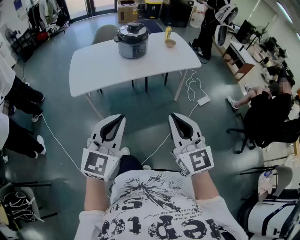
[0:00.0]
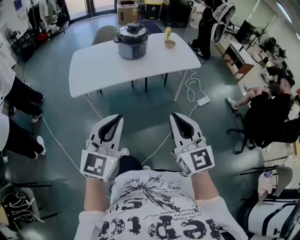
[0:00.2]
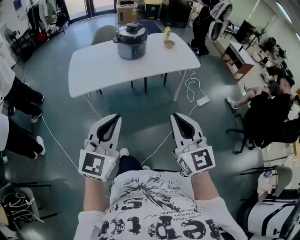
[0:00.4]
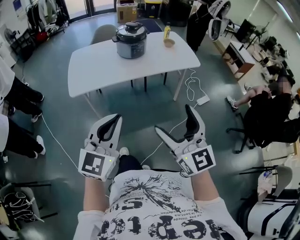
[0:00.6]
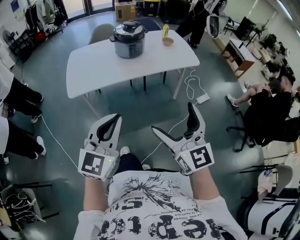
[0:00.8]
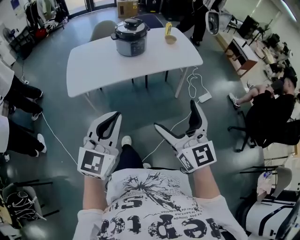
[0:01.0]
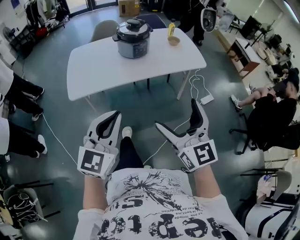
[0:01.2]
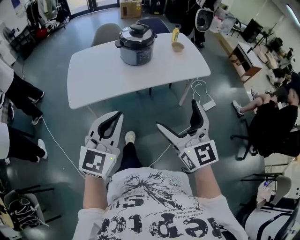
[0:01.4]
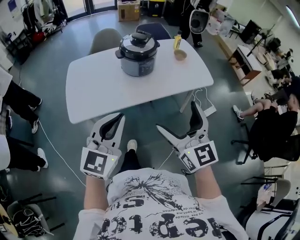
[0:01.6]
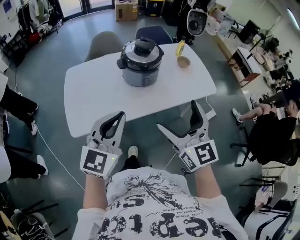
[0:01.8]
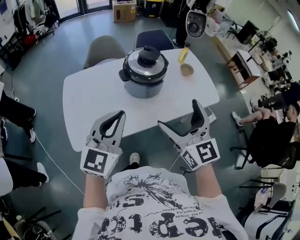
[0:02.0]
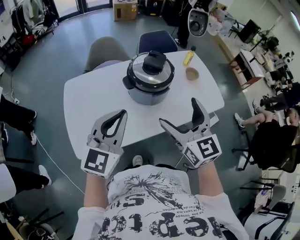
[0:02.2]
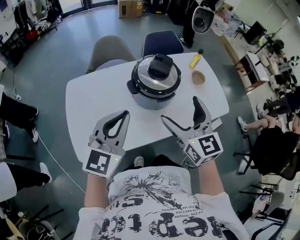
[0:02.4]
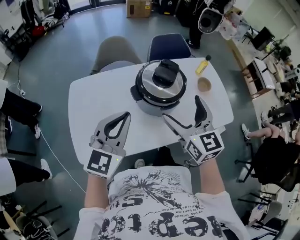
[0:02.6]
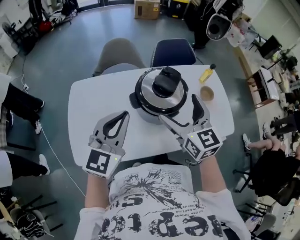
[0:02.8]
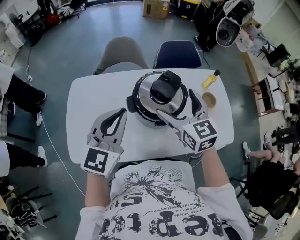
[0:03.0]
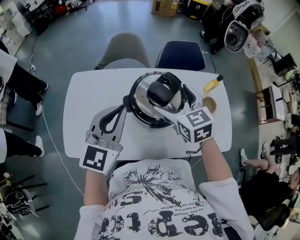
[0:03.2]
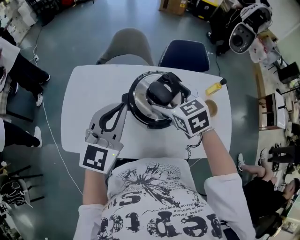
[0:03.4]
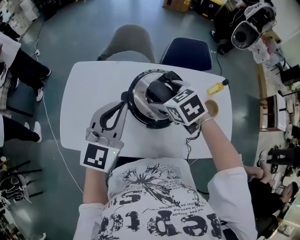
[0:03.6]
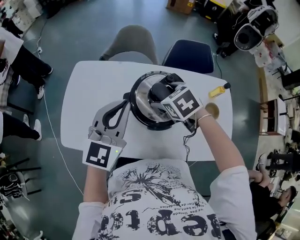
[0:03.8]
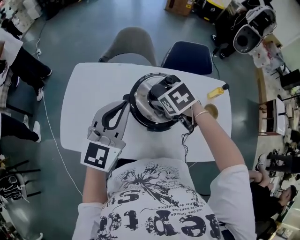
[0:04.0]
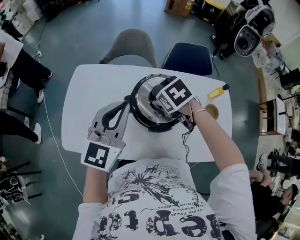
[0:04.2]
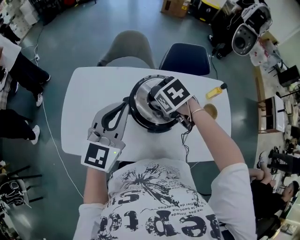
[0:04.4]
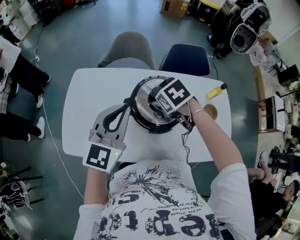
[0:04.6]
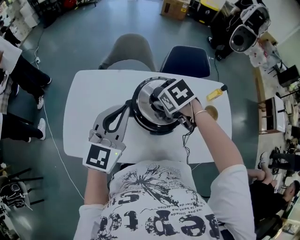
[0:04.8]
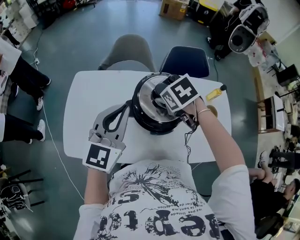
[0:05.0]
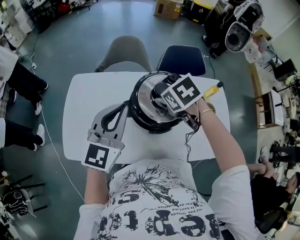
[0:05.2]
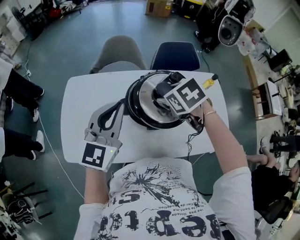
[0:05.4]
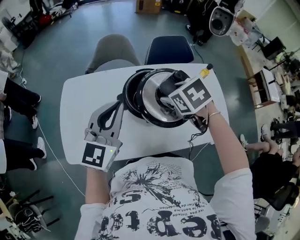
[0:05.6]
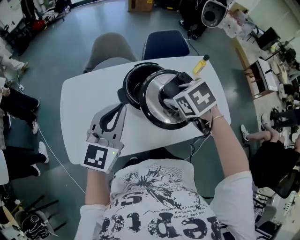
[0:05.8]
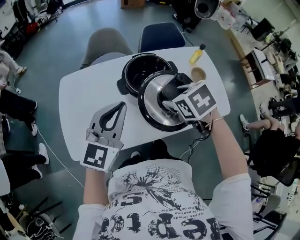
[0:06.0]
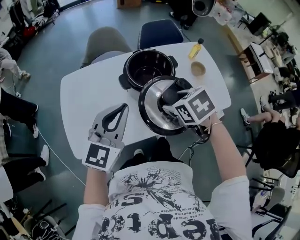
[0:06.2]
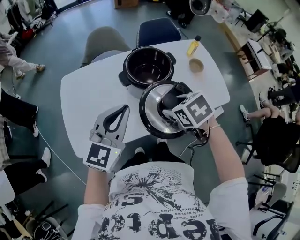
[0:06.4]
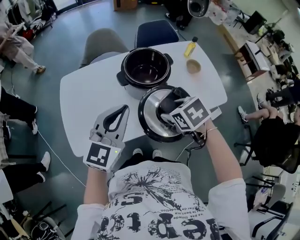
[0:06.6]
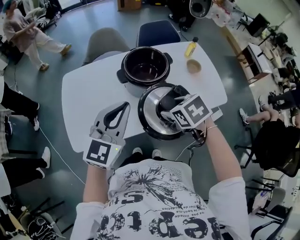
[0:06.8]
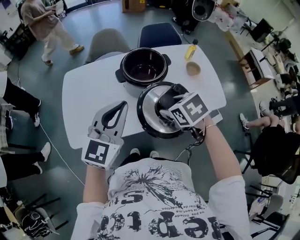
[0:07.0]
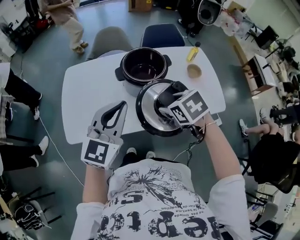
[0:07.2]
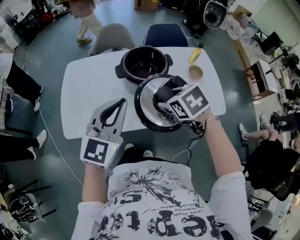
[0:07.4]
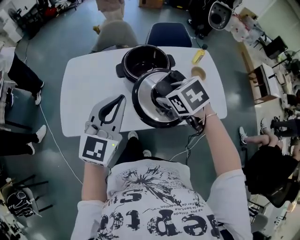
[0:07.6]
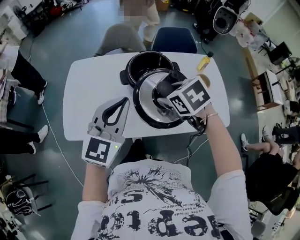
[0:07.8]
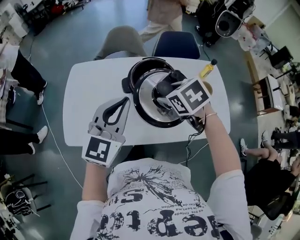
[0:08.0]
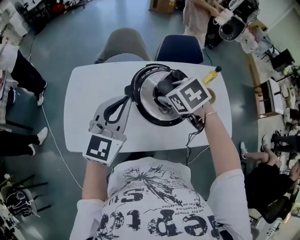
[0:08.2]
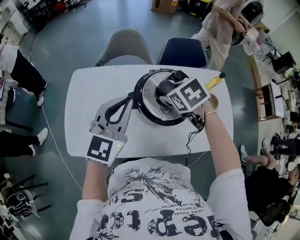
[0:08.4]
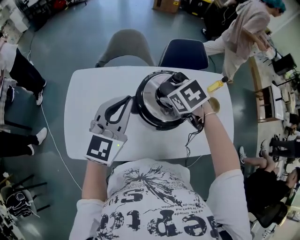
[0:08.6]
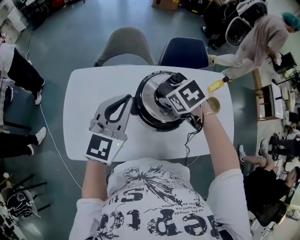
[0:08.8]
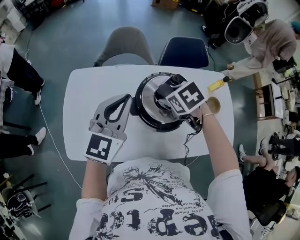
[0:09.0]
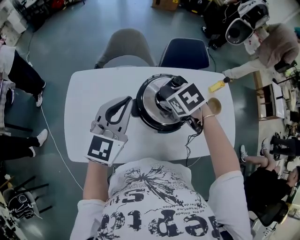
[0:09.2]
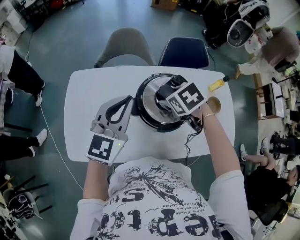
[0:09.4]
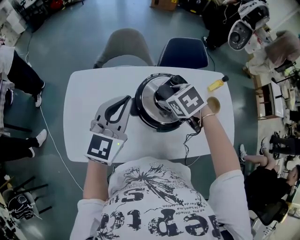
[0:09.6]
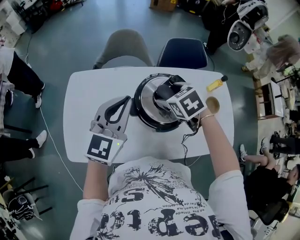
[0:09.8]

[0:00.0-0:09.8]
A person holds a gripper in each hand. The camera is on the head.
0:00.0 to 0:01.4: The two grippers go about 20 cm forward. The right gripper opens up.
0:01.4 to 0:02.8: The pair of grippers is taken forward, some 60 cm.
0:02.8 to 0:04.2: The left gripper shifts by about 10 cm. The right gripper ends up about 20 cm from where it was, tips its fingers downward by some 60 degrees, and closes up.
0:04.2 to 0:05.6: The right gripper moves backward and upward, approximately 10 cm.
0:05.6 to 0:07.0: The two grippers go some 20 cm backward.
0:07.0 to 0:08.4: The two grippers go about 25 cm forward.
0:08.4 to 0:09.8: The right gripper ends up some 5 cm from where it was, while the left gripper goes some 5 cm forward.

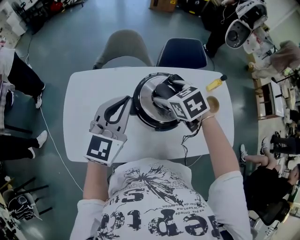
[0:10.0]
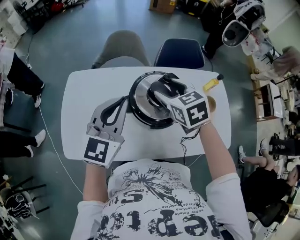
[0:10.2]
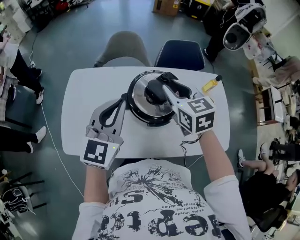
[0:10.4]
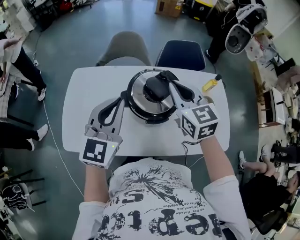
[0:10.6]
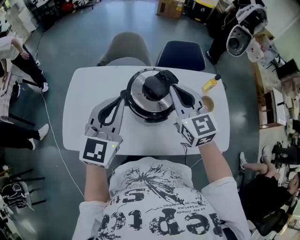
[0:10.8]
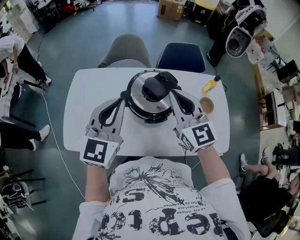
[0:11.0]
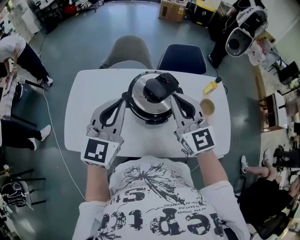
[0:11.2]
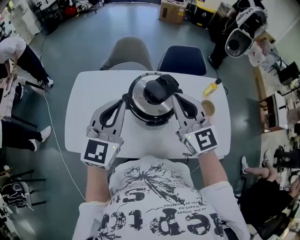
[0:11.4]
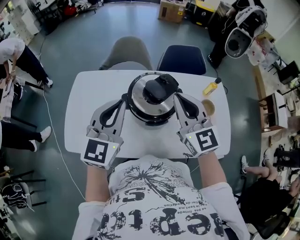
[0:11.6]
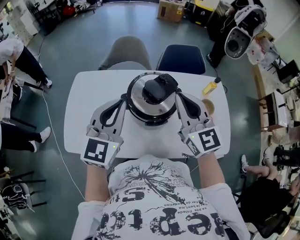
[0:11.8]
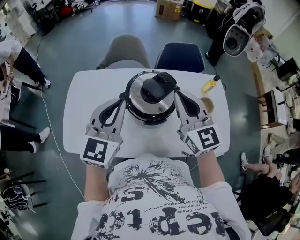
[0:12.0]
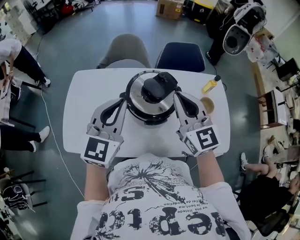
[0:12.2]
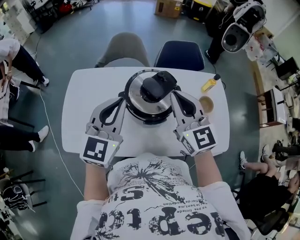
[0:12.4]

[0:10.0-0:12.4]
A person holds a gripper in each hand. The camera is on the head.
0:10.0 to 0:11.2: The right gripper goes approximately 20 cm upward, backward and to the right, tilts its fingers roughly 50 degrees upward, and closes. The left gripper shifts approximately 10 cm backward.
0:11.2 to 0:12.4: There are only small adjustments of the grippers.

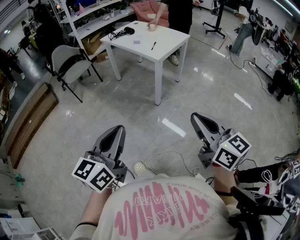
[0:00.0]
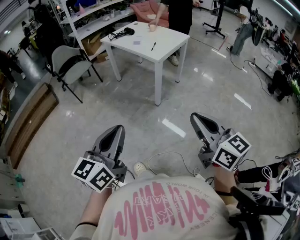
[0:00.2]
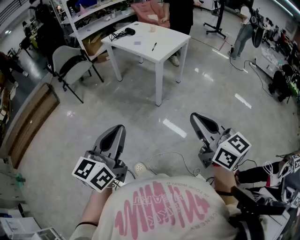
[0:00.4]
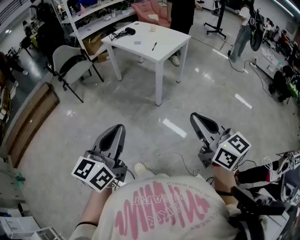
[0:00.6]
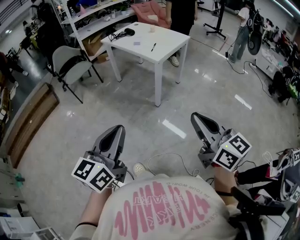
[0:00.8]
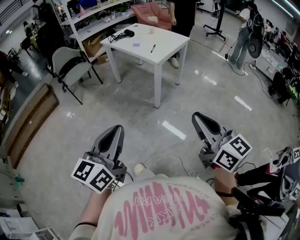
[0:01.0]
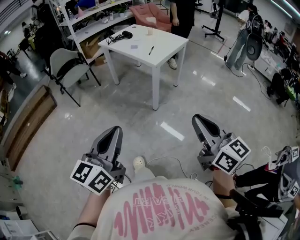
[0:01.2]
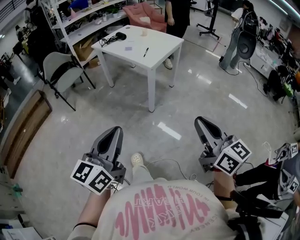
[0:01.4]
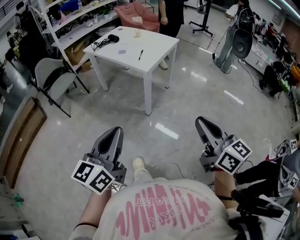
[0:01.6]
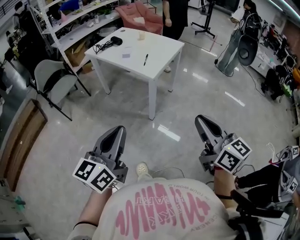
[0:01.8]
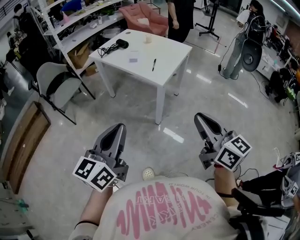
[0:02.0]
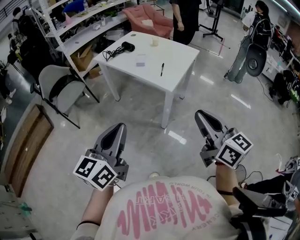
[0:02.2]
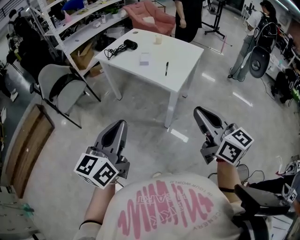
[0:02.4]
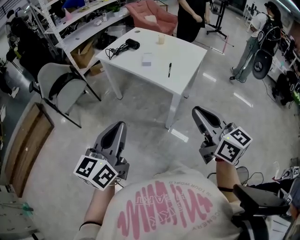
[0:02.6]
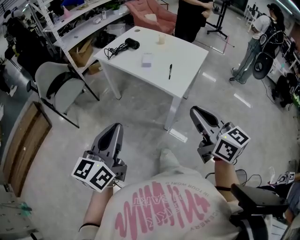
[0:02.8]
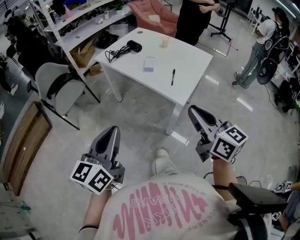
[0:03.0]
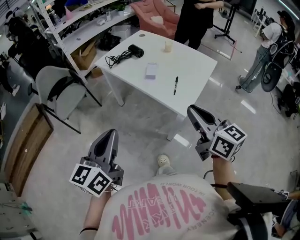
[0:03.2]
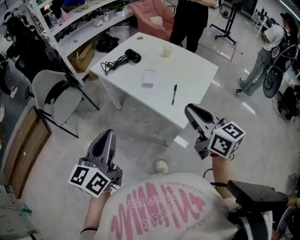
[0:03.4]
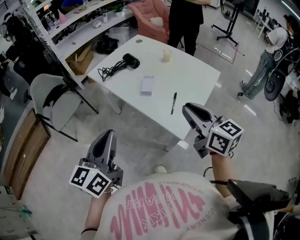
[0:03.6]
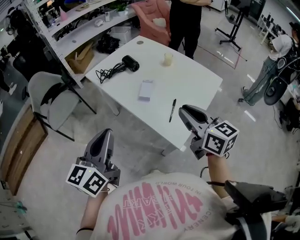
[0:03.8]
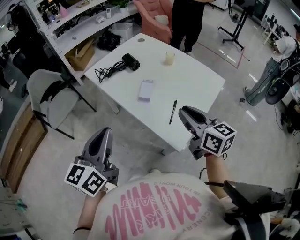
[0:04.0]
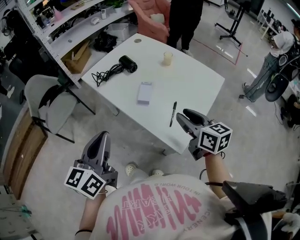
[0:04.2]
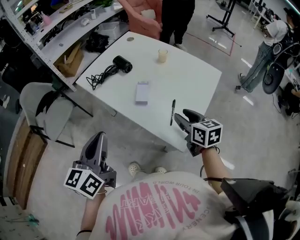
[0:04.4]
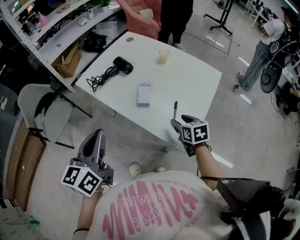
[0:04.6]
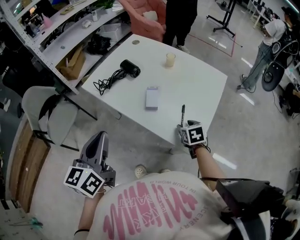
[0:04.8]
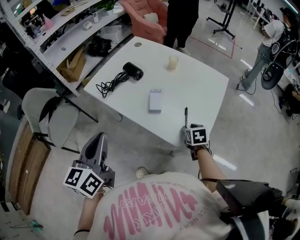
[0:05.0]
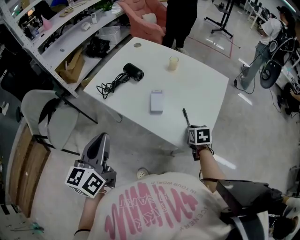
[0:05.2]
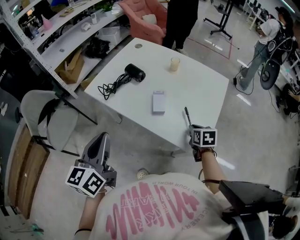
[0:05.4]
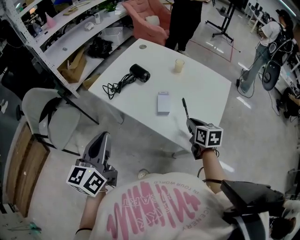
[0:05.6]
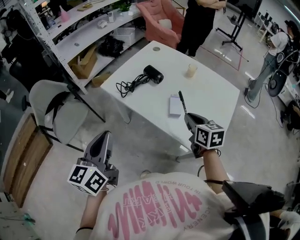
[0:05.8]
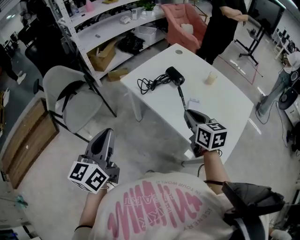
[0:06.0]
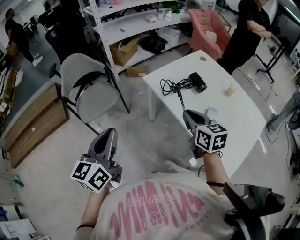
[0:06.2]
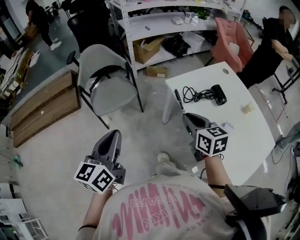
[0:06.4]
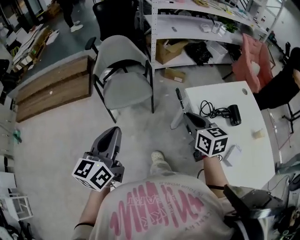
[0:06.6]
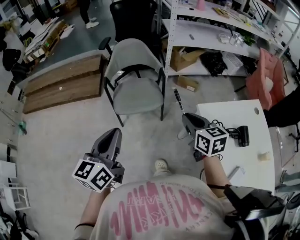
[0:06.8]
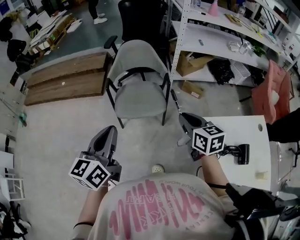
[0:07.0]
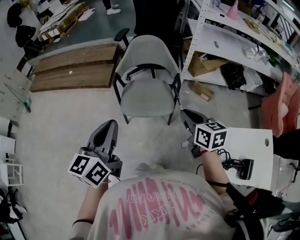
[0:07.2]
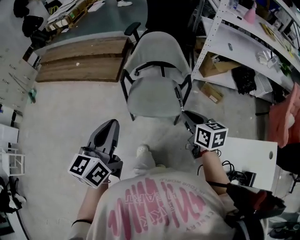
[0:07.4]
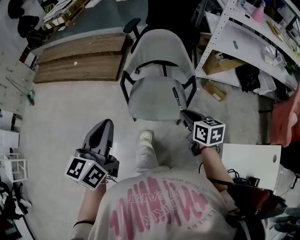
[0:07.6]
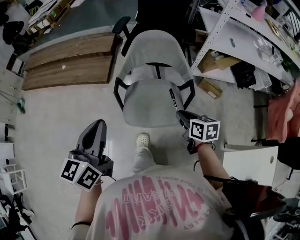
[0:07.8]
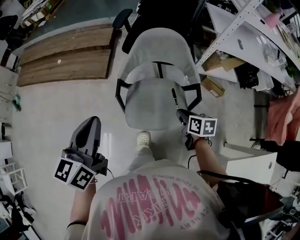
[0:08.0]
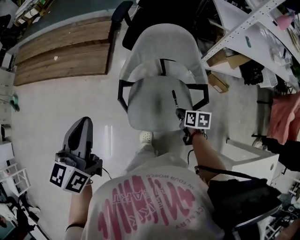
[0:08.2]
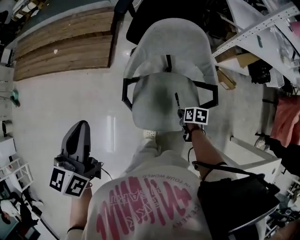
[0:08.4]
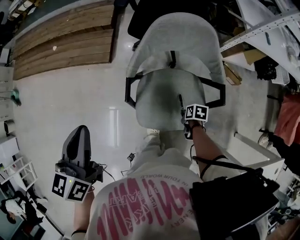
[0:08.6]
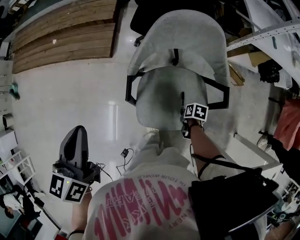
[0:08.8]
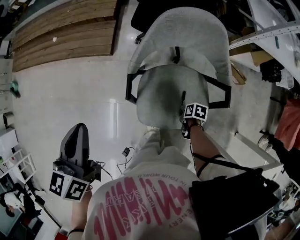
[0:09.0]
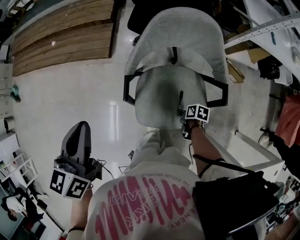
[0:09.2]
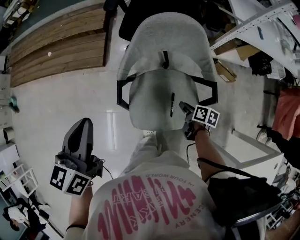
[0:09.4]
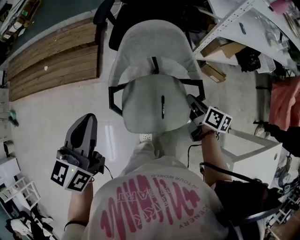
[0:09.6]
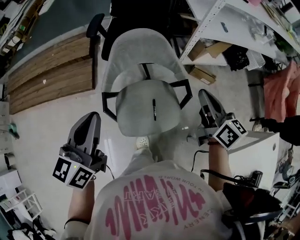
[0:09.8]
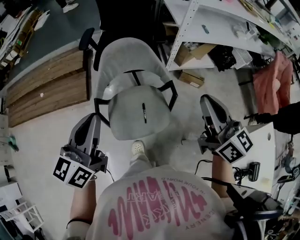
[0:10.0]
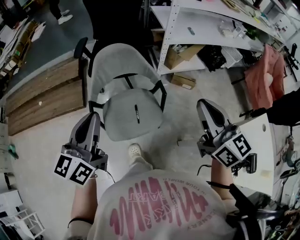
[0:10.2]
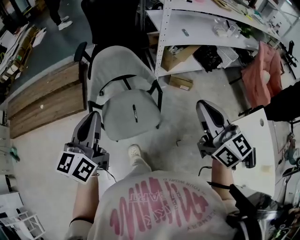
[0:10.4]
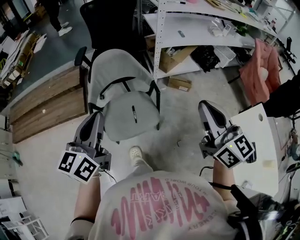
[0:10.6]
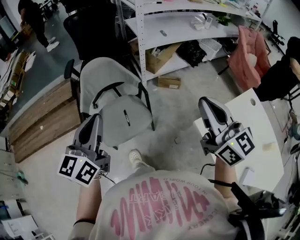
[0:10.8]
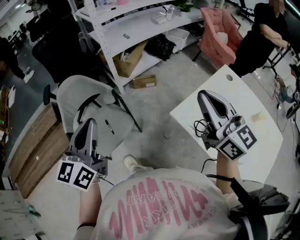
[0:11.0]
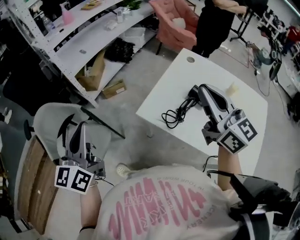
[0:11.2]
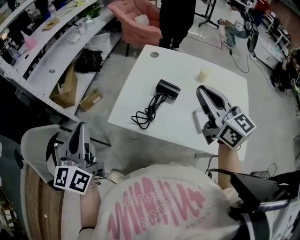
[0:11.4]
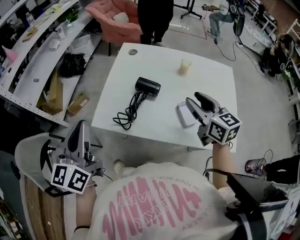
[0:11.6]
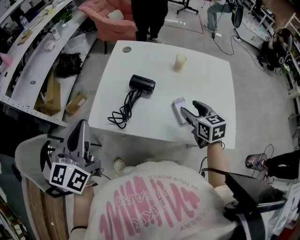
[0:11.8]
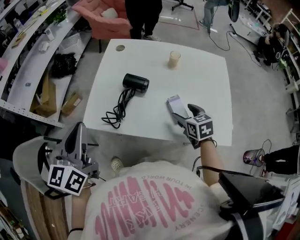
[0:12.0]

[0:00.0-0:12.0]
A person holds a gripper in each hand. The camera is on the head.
0:00.0 to 0:01.6: The left gripper moves forward, approximately 10 cm; the right gripper is displaced forward and to the right by roughly 10 cm.
0:01.6 to 0:03.0: The two grippers go roughly 35 cm forward and to the left.
0:03.0 to 0:04.4: The left gripper heads forward, covering approximately 25 cm; the right gripper heads forward and downward, covering about 30 cm, swivels roughly 20 degrees, and opens its fingers.
0:04.4 to 0:06.0: Both grippers travel together to the left, about 20 cm. The right gripper closes.
0:06.0 to 0:07.6: The right gripper ends up roughly 60 cm from where it was, and swivels some 60 degrees; the left gripper changes place by roughly 40 cm, and changes its angle by about 50 degrees.
0:07.6 to 0:09.0: The left gripper shifts about 25 cm forward. Meanwhile the right gripper goes some 35 cm downward, and angles its fingers downward, by about 40 degrees.
0:09.0 to 0:10.4: The right gripper shifts some 60 cm upward, and points its fingers approximately 70 degrees further upward, while the left gripper shifts by approximately 25 cm, and rotates approximately 30 degrees.
0:10.4 to 0:12.0: The two grippers travel together, roughly 50 cm. The right gripper points its fingers about 40 degrees further downward, and opens. The left gripper changes its angle by roughly 60 degrees.
